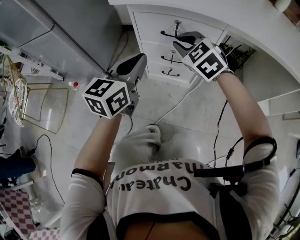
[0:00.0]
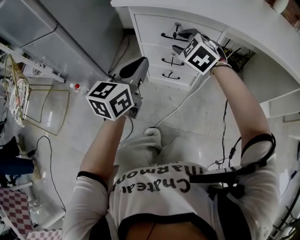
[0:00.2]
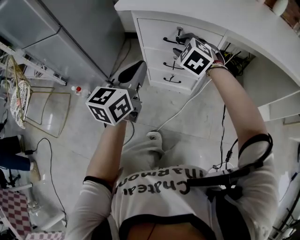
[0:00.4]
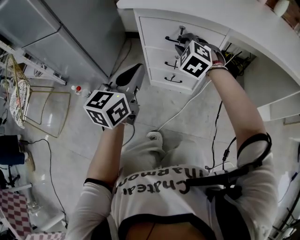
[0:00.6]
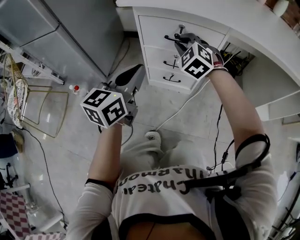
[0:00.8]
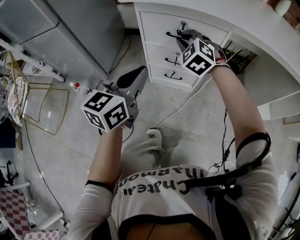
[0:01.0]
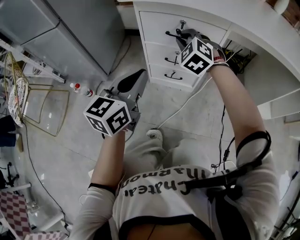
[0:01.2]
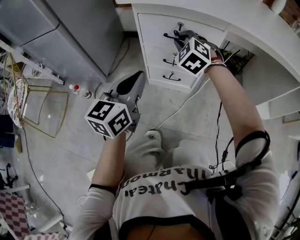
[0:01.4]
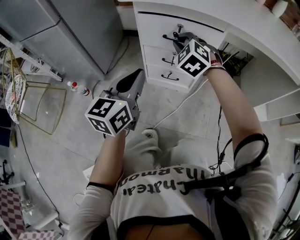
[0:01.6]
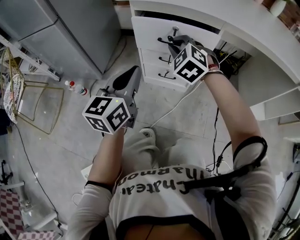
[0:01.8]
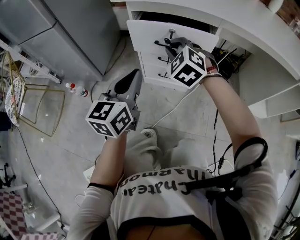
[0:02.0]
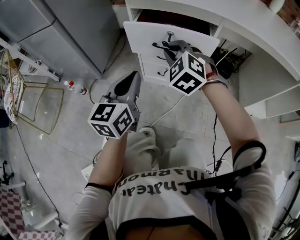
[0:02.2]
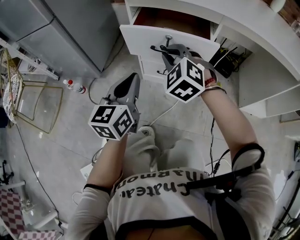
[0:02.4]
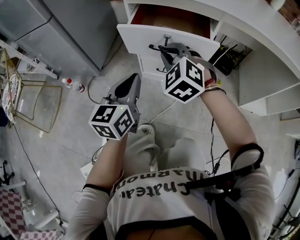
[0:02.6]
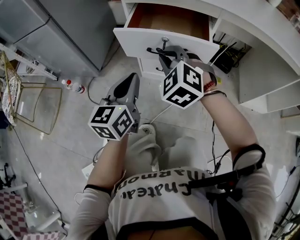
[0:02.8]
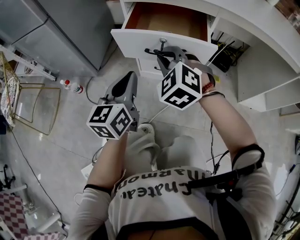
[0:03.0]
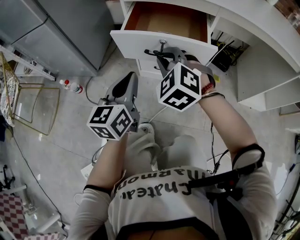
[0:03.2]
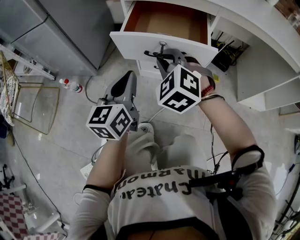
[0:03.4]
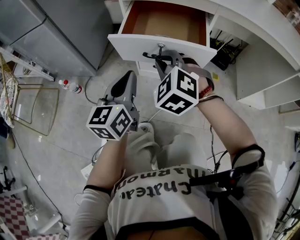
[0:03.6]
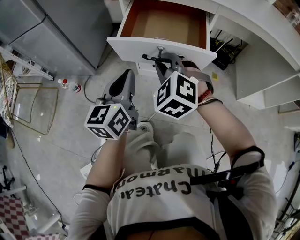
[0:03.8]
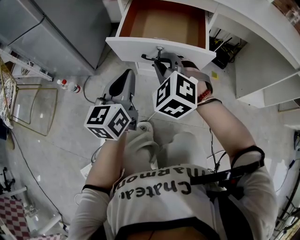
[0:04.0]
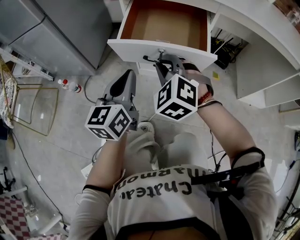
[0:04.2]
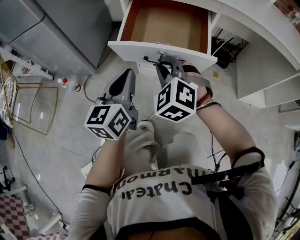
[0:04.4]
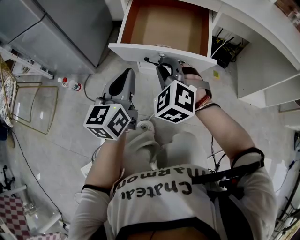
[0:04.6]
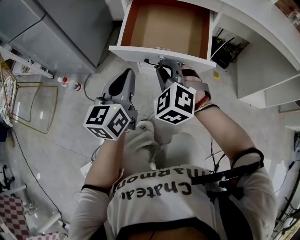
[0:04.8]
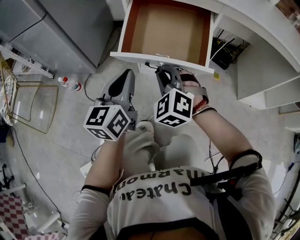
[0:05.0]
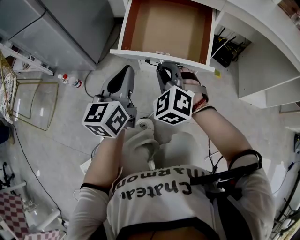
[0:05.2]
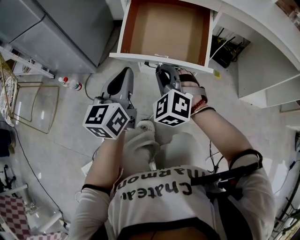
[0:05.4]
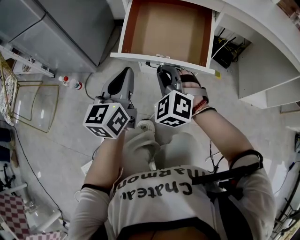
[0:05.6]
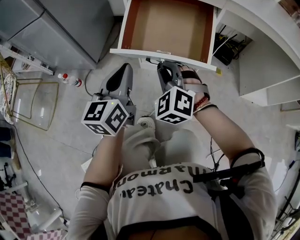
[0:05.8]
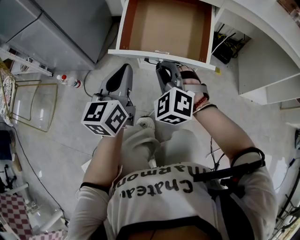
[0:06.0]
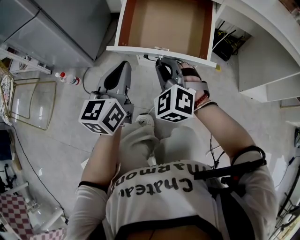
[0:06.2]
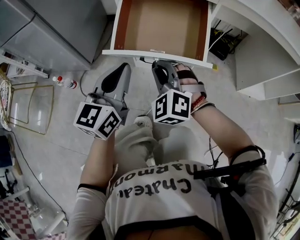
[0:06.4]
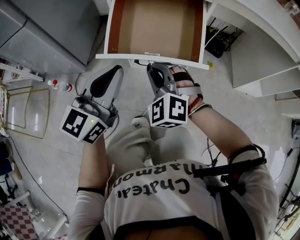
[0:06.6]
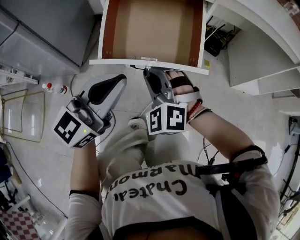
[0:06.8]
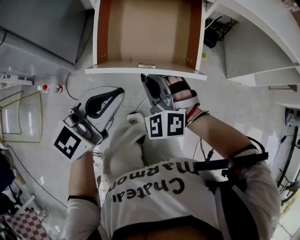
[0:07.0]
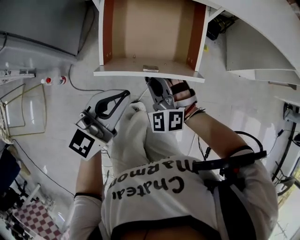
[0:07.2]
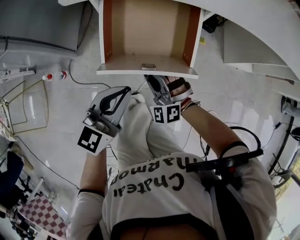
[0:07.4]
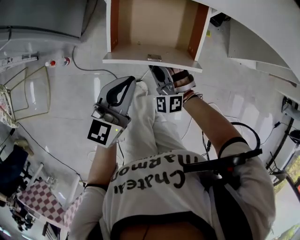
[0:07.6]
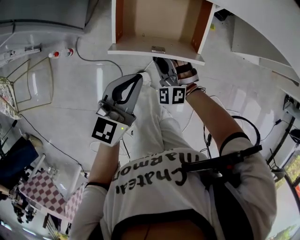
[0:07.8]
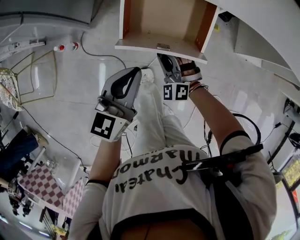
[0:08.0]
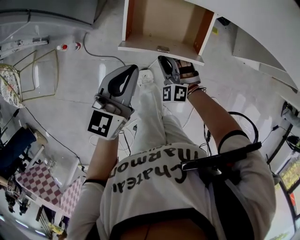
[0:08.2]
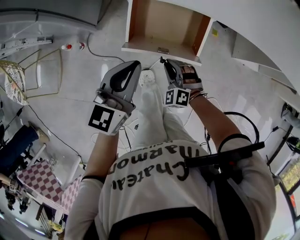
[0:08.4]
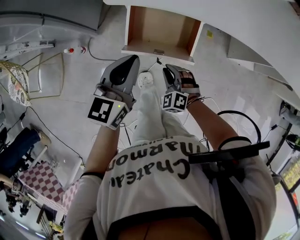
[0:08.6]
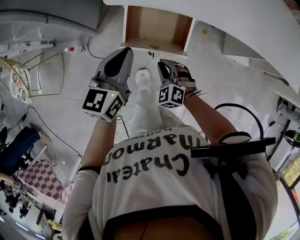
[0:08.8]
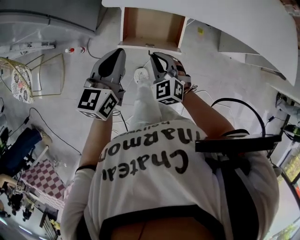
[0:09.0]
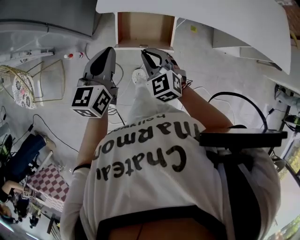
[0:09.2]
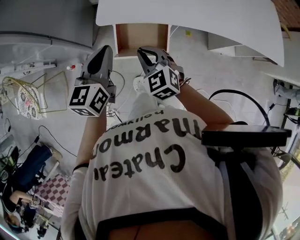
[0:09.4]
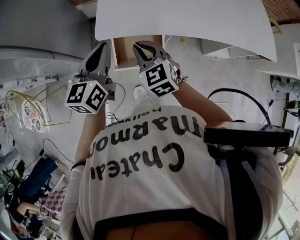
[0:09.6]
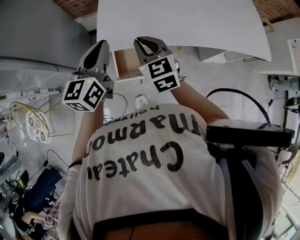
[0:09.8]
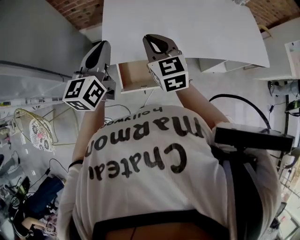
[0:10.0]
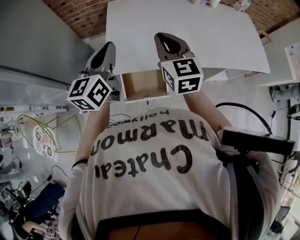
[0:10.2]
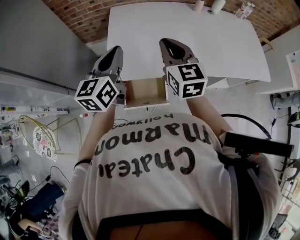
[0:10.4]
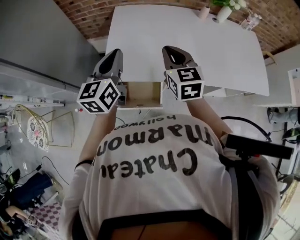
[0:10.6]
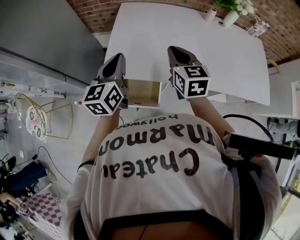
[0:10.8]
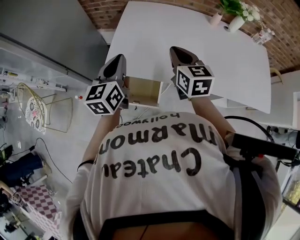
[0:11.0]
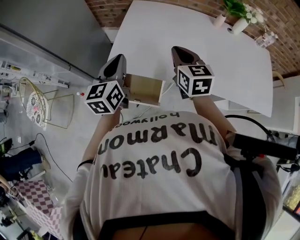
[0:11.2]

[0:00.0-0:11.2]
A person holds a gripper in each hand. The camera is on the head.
0:00.0 to 0:01.6: The left gripper travels backward by approximately 5 cm, while the right gripper opens and closes again.
0:01.6 to 0:03.2: The right gripper moves backward, about 10 cm.
0:03.2 to 0:04.8: The right gripper moves some 5 cm.
0:04.8 to 0:06.4: There are only small adjustments of the grippers.
0:06.4 to 0:08.0: The left gripper goes some 10 cm upward.
0:08.0 to 0:09.6: Both grippers travel together upward, about 35 cm. The right gripper rolls clockwise, seen from behind, by roughly 40 degrees.
0:09.6 to 0:11.2: The right gripper heads to the right, forward and upward, covering some 25 cm. The left gripper is displaced forward, to the right and upward by roughly 10 cm.

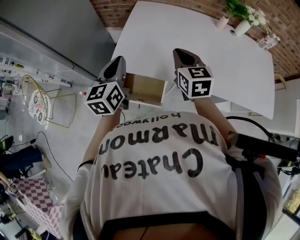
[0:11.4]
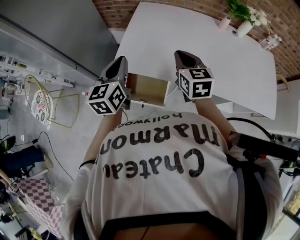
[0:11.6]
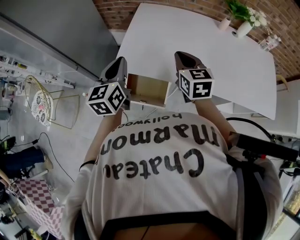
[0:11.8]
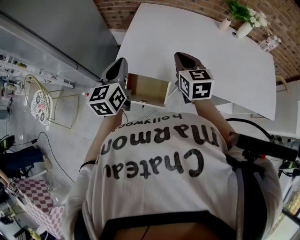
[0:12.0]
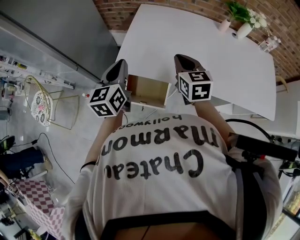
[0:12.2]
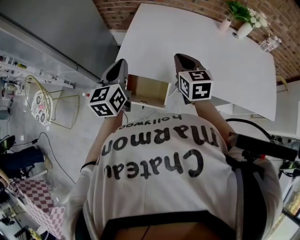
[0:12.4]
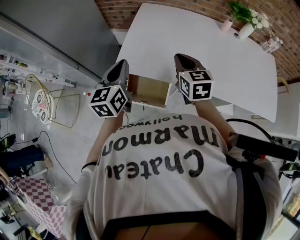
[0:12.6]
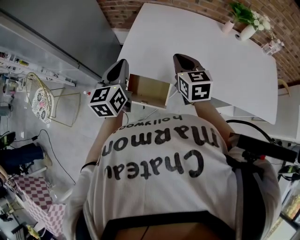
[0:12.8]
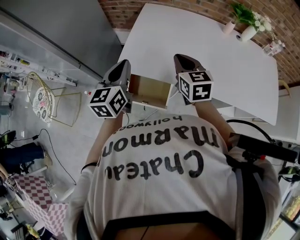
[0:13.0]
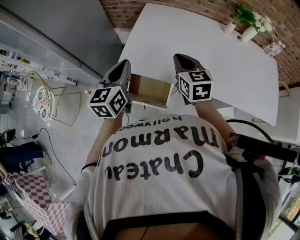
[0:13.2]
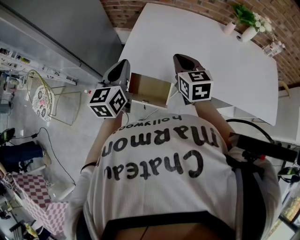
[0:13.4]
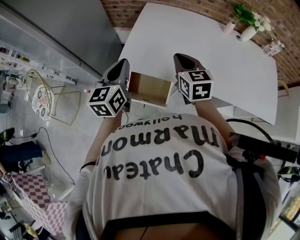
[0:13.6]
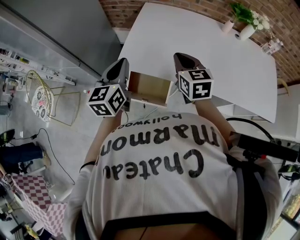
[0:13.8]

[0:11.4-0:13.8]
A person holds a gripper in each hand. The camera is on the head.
0:11.4 to 0:13.8: There are only small adjustments of the grippers.

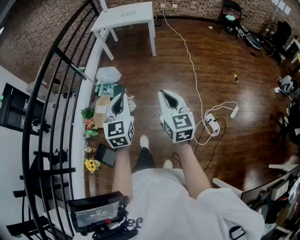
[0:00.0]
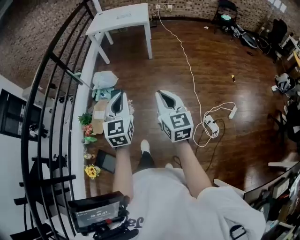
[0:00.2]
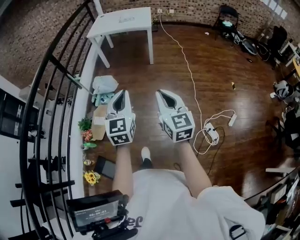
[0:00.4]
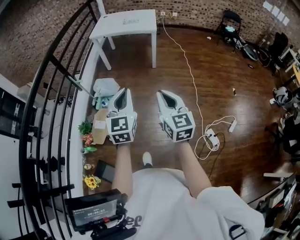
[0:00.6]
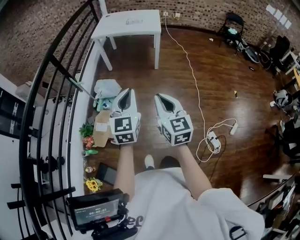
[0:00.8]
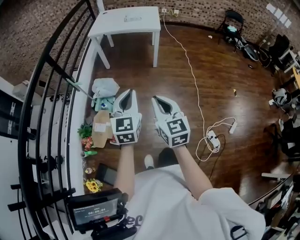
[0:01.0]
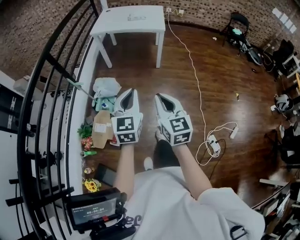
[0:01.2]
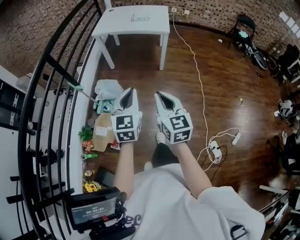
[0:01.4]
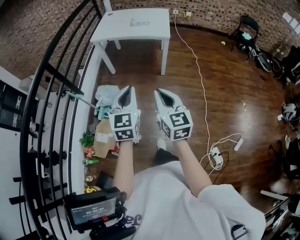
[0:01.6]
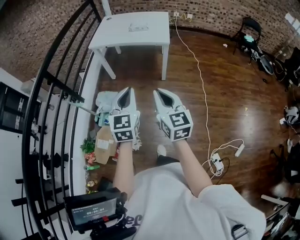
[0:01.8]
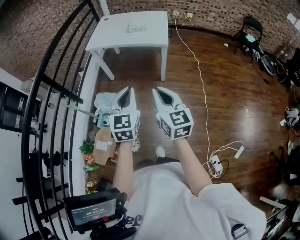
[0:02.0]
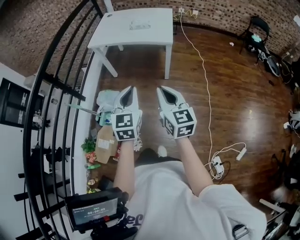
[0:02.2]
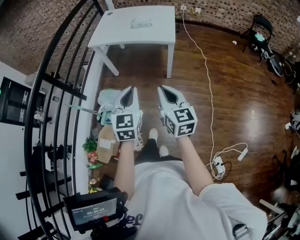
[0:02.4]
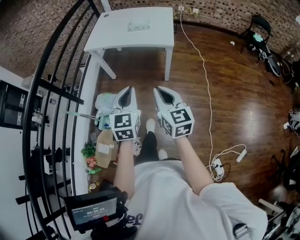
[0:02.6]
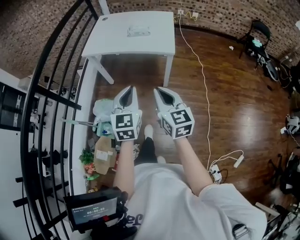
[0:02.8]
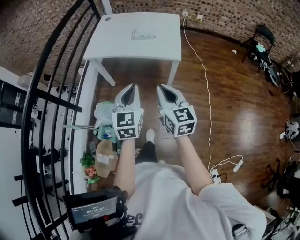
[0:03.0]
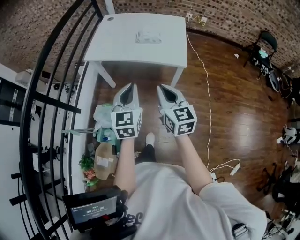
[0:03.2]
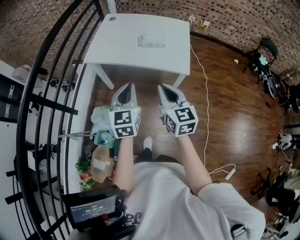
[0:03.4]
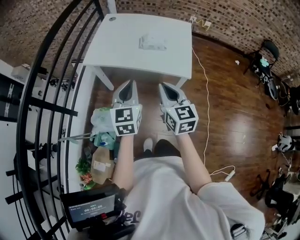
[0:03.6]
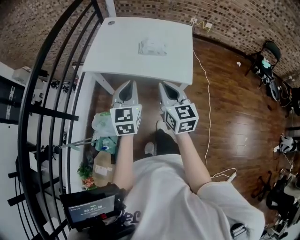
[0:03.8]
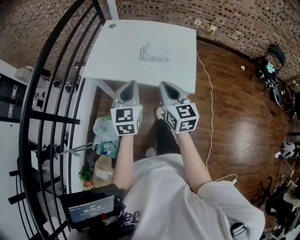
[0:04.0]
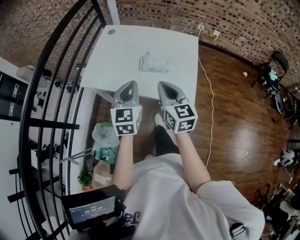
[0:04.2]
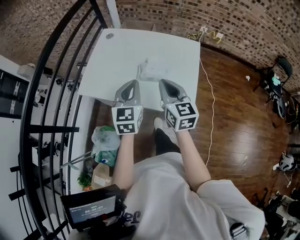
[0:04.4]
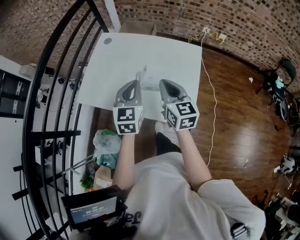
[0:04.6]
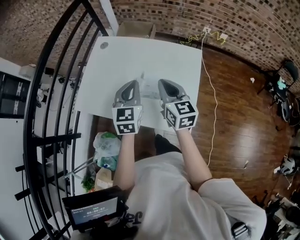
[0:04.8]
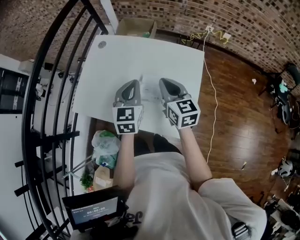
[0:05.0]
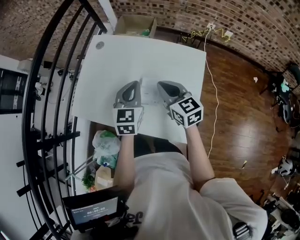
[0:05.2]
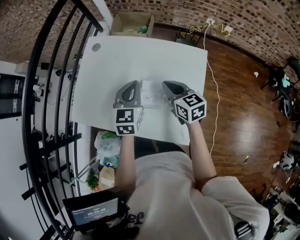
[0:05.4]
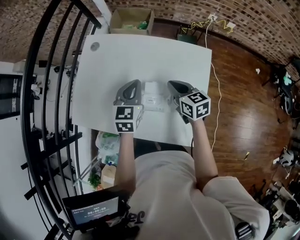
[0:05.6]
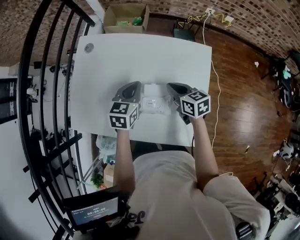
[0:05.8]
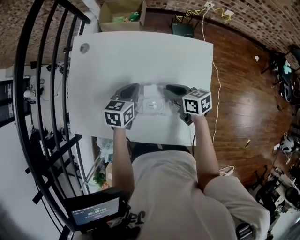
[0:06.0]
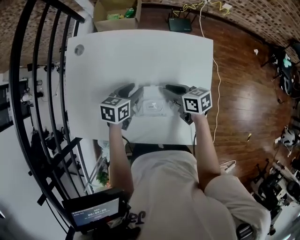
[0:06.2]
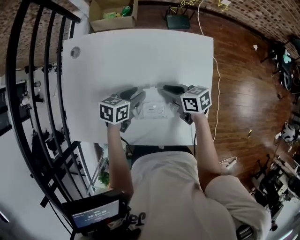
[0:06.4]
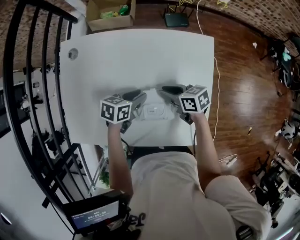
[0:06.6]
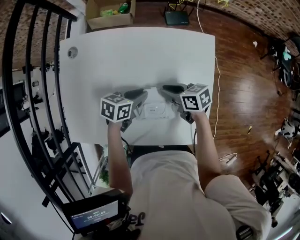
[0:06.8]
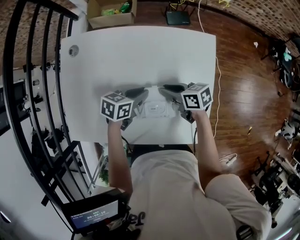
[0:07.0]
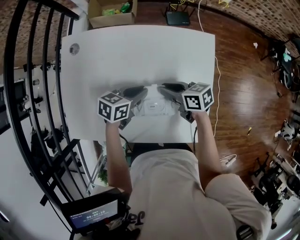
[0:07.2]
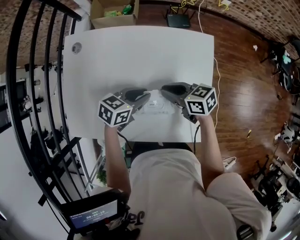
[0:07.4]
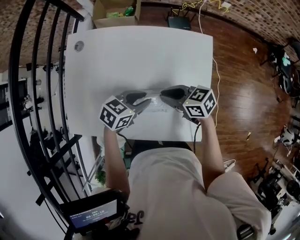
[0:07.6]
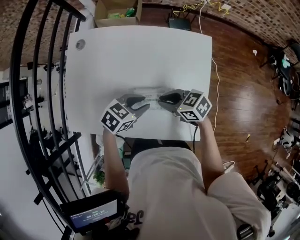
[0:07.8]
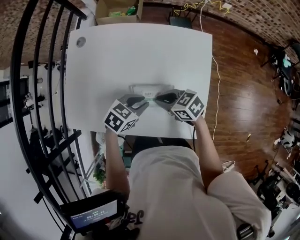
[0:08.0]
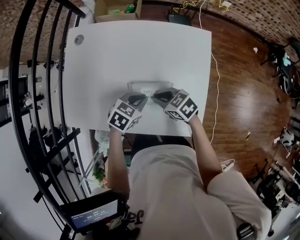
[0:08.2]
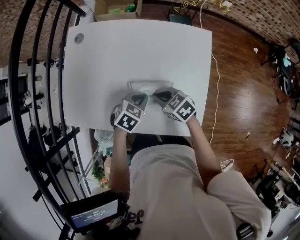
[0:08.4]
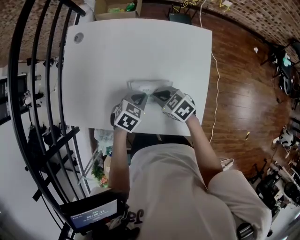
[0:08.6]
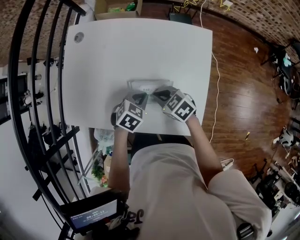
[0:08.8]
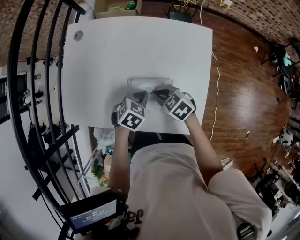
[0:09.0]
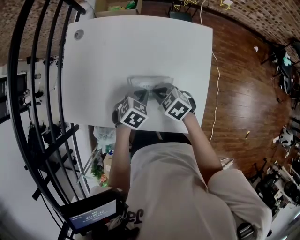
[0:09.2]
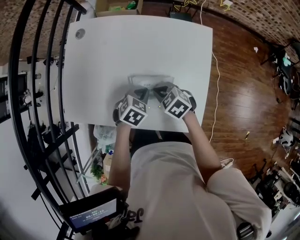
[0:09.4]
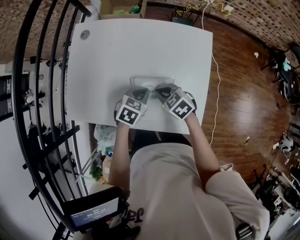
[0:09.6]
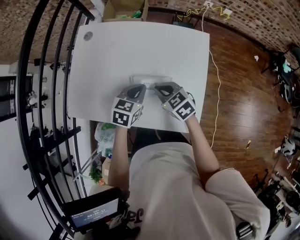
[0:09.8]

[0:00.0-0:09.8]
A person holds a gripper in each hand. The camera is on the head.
0:00.0 to 0:01.4: The grippers both shift forward by roughly 35 cm.
0:01.4 to 0:02.8: The grippers both shift forward by some 35 cm.
0:02.8 to 0:04.2: Both grippers are carried forward, approximately 40 cm.
0:04.2 to 0:05.6: The left gripper travels forward by approximately 30 cm. The right gripper moves forward and downward, some 35 cm, and turns by some 30 degrees.
0:05.6 to 0:07.0: Both grippers move downward, about 15 cm. The left gripper rotates approximately 50 degrees, and opens, then closes once more; the right gripper swivels approximately 30 degrees.
0:07.0 to 0:08.4: The right gripper ends up some 10 cm from where it was, and rotates about 40 degrees. The left gripper moves roughly 10 cm, and swivels about 30 degrees.
0:08.4 to 0:09.8: The right gripper shifts by roughly 5 cm, while the left gripper travels upward by some 5 cm, and swivels some 20 degrees.
